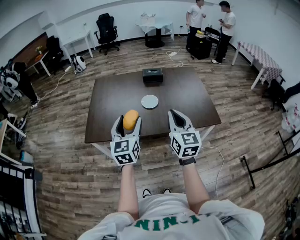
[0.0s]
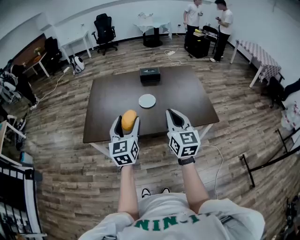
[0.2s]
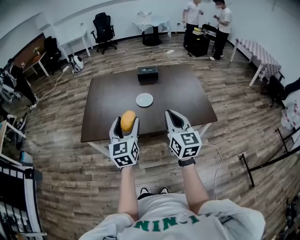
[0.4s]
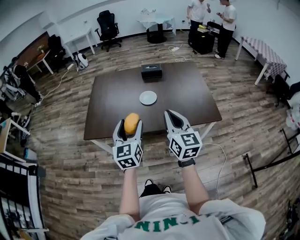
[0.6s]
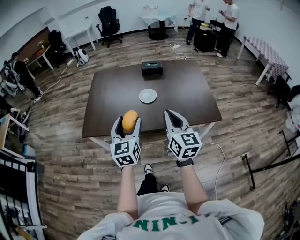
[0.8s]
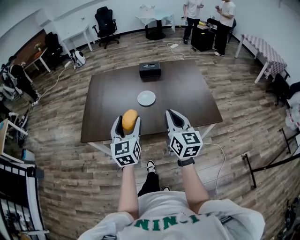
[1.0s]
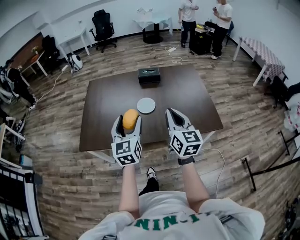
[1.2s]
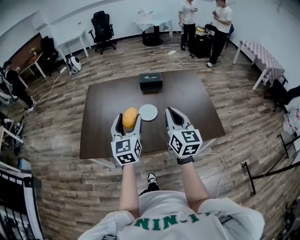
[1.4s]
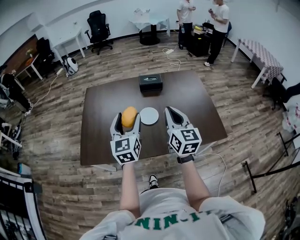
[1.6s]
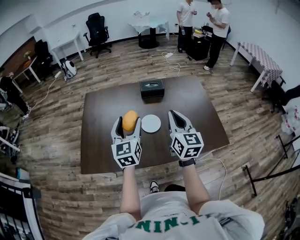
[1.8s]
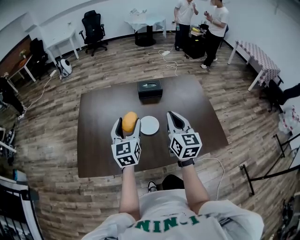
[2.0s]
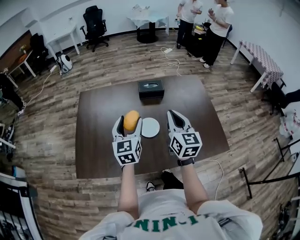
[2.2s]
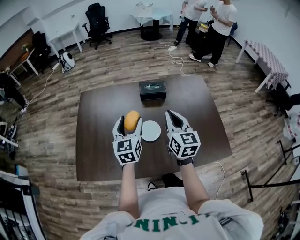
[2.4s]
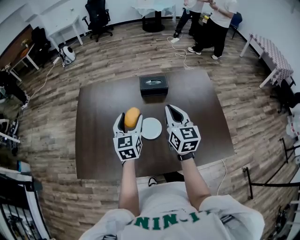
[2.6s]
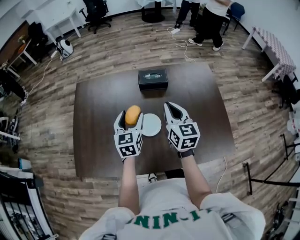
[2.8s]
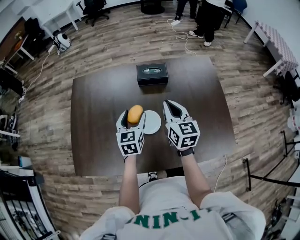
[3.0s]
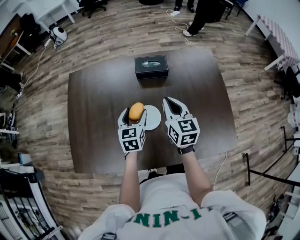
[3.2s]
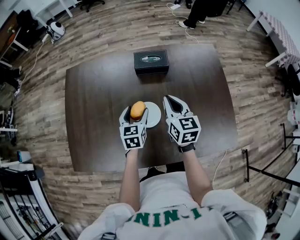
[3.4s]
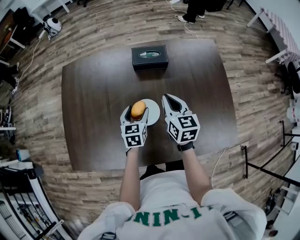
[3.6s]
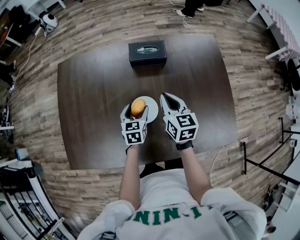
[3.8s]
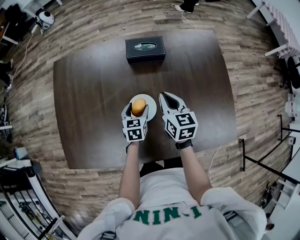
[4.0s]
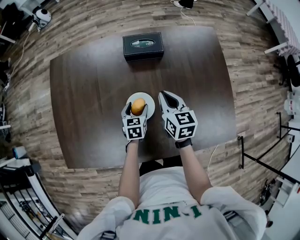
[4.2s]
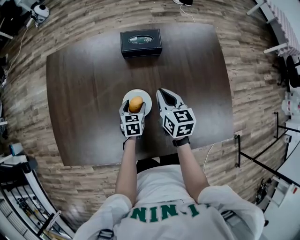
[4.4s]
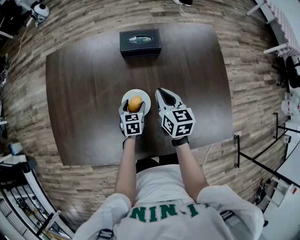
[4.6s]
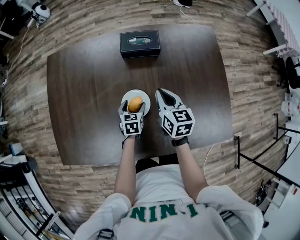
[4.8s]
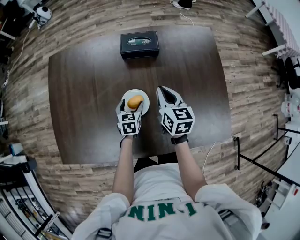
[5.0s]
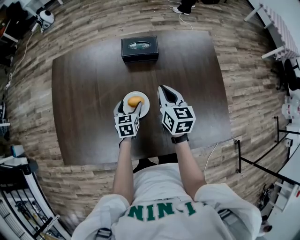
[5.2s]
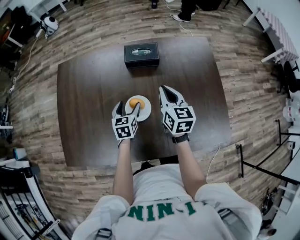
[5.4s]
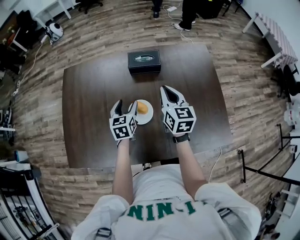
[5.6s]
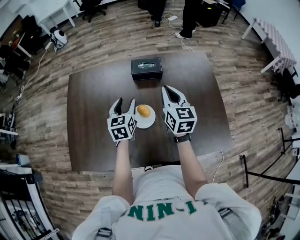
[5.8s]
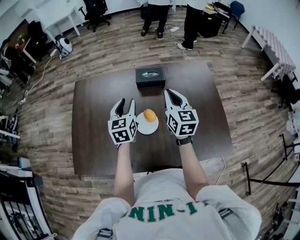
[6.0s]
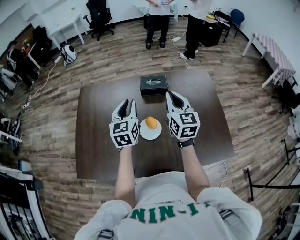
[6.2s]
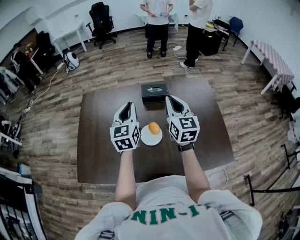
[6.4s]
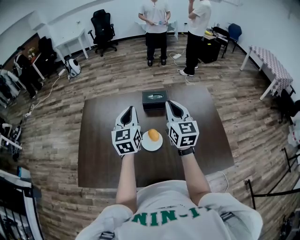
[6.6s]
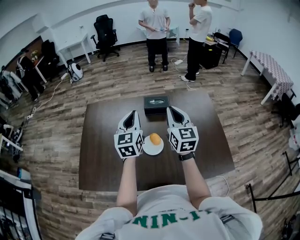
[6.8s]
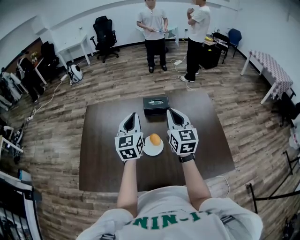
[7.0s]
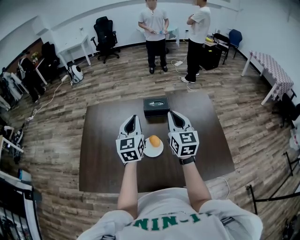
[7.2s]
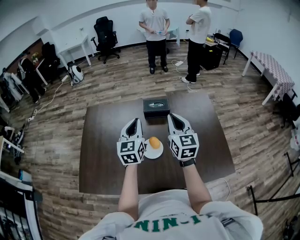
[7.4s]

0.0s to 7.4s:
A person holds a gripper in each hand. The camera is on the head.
0.0s to 1.4s: The grippers both shift forward by some 15 cm.
1.4s to 3.0s: Both grippers move forward and downward, about 35 cm. The left gripper turns by approximately 20 degrees.
3.0s to 4.4s: The left gripper shifts some 25 cm downward, and rotates approximately 20 degrees; the right gripper goes about 15 cm downward.
4.4s to 6.0s: The right gripper is displaced upward by roughly 20 cm, and rotates roughly 20 degrees, while the left gripper shifts about 30 cm upward, swivels about 30 degrees, and closes its fingers.
6.0s to 7.4s: Both grippers travel together upward, approximately 10 cm. The left gripper closes up.

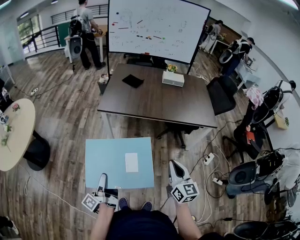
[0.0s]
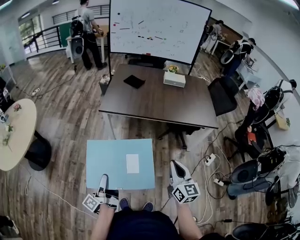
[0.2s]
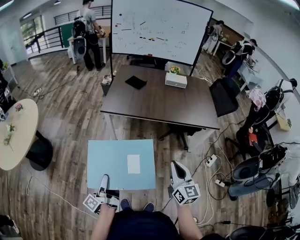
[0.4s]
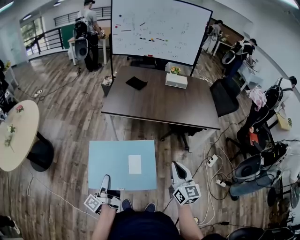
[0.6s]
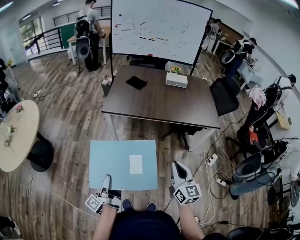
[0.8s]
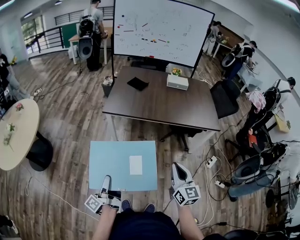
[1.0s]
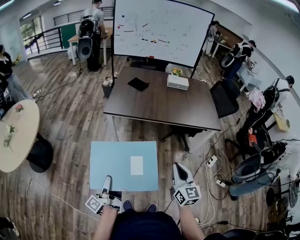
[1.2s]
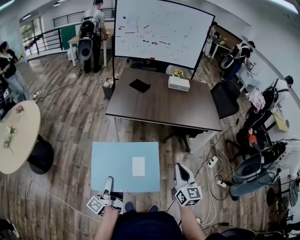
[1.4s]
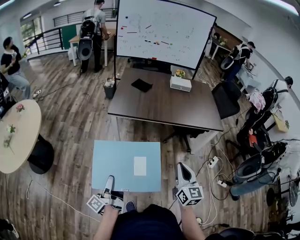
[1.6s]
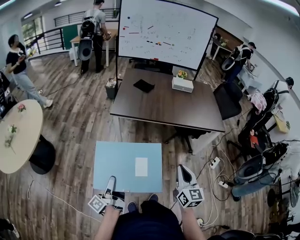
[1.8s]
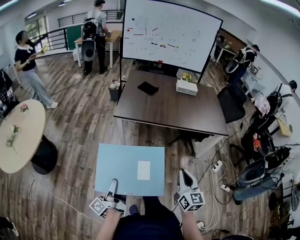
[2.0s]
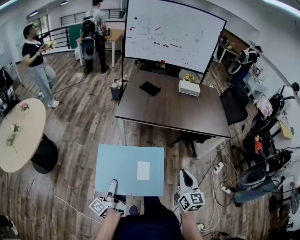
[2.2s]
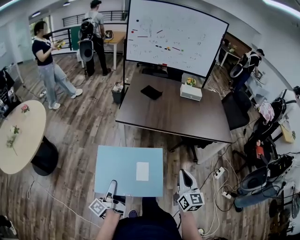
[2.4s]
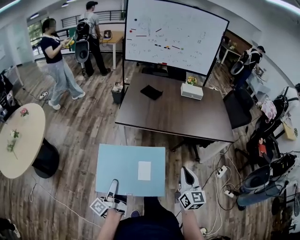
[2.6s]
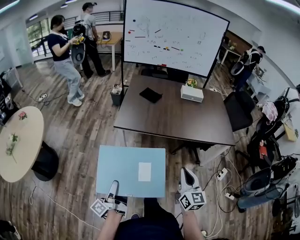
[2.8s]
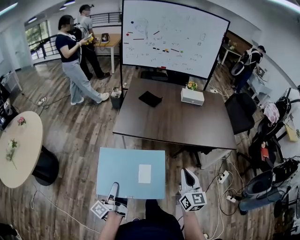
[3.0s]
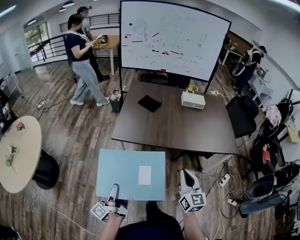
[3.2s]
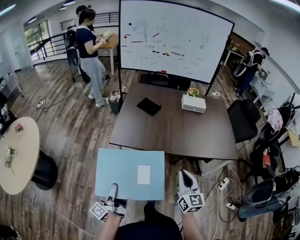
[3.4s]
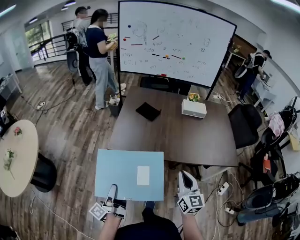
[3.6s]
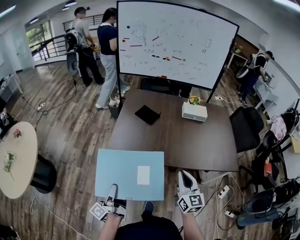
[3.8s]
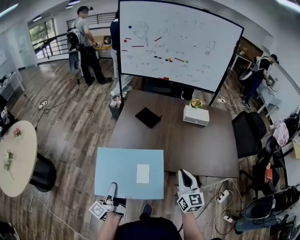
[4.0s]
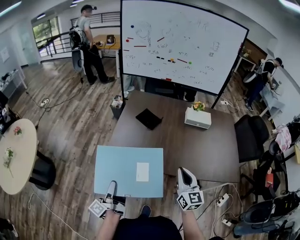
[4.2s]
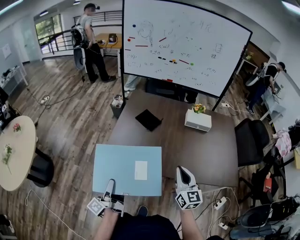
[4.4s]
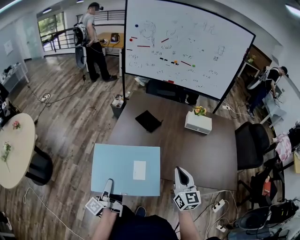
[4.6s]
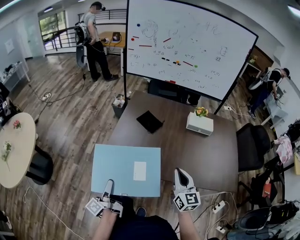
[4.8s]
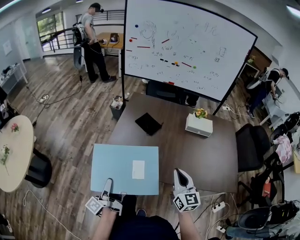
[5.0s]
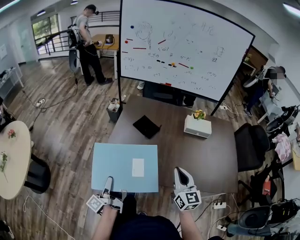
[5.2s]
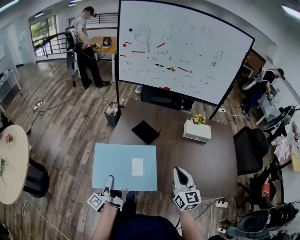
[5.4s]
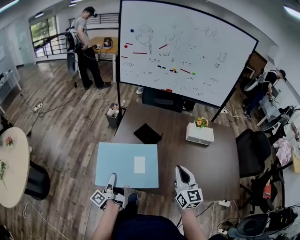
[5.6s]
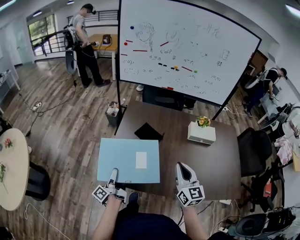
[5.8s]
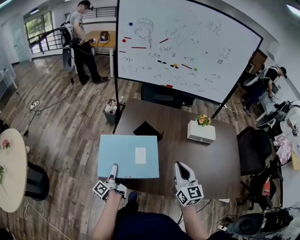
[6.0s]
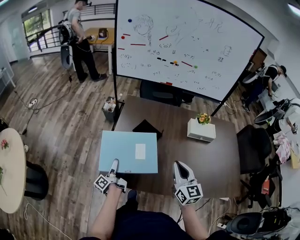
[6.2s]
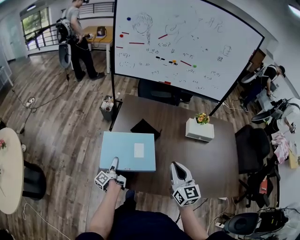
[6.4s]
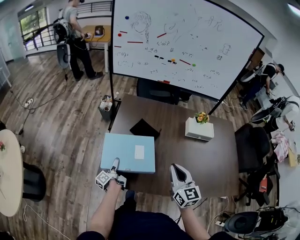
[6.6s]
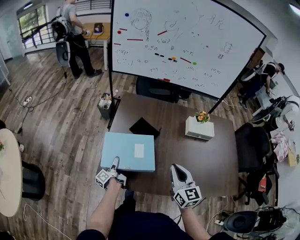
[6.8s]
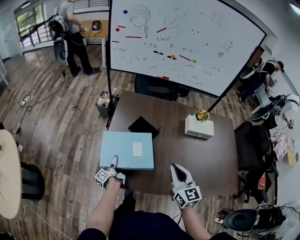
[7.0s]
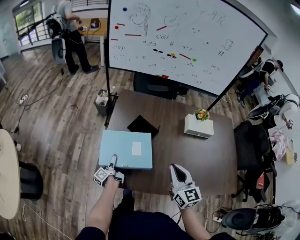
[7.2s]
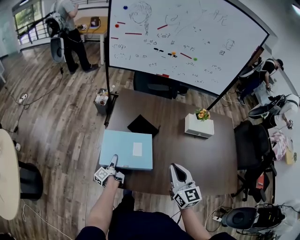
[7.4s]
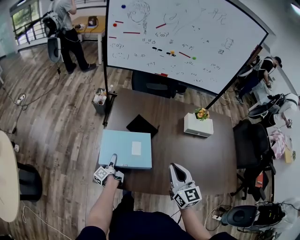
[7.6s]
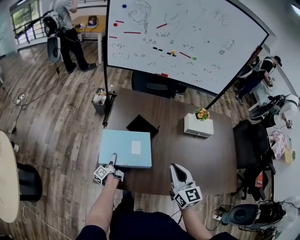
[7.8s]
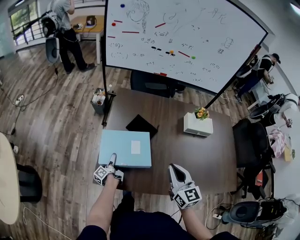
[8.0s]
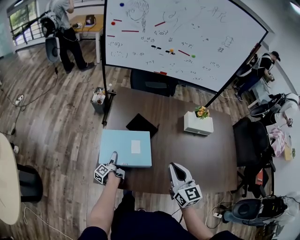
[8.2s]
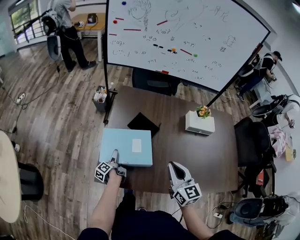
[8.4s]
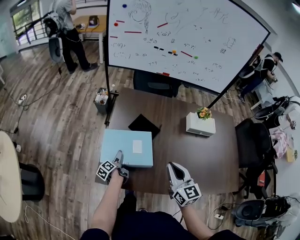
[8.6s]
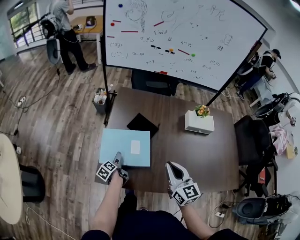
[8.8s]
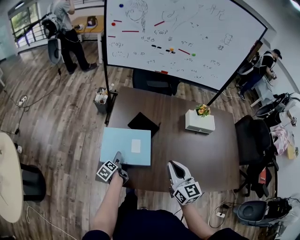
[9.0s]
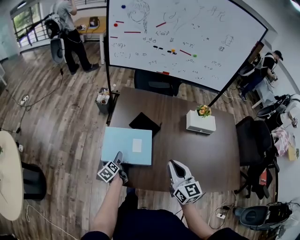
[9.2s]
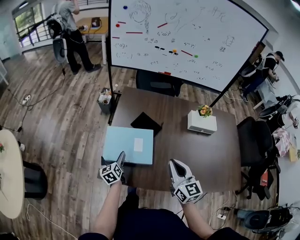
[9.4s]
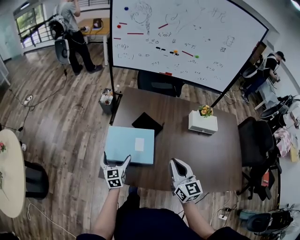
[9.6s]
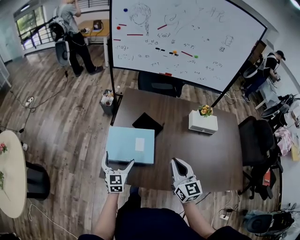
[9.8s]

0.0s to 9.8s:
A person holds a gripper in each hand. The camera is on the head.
1.4s to 2.8s: The right gripper ends up approximately 15 cm from where it was.
2.8s to 4.2s: The right gripper ends up approximately 35 cm from where it was.
4.2s to 5.6s: The right gripper shifts by about 20 cm.
5.6s to 7.0s: The right gripper shifts by some 10 cm.

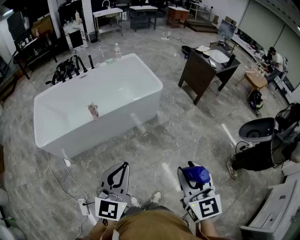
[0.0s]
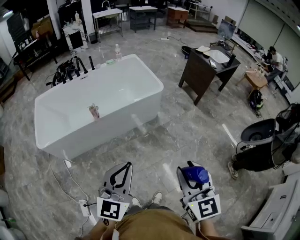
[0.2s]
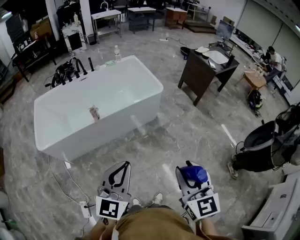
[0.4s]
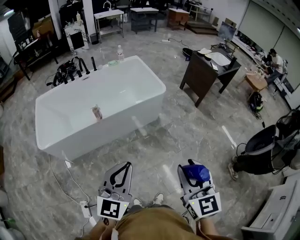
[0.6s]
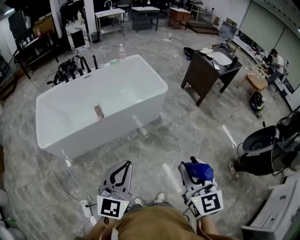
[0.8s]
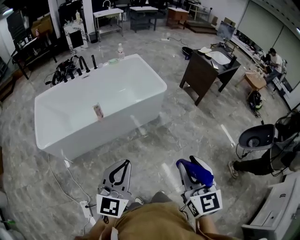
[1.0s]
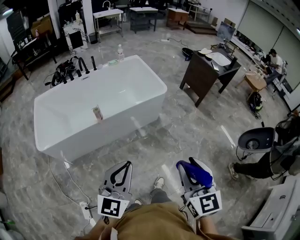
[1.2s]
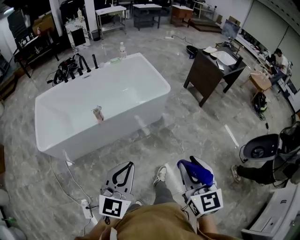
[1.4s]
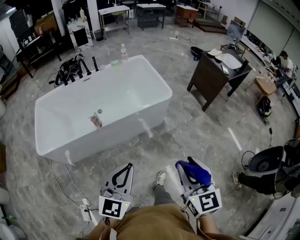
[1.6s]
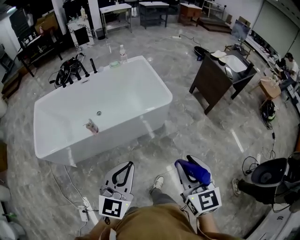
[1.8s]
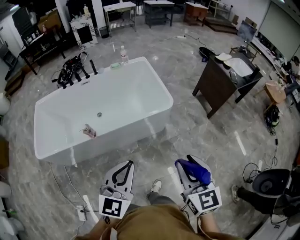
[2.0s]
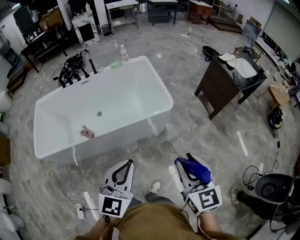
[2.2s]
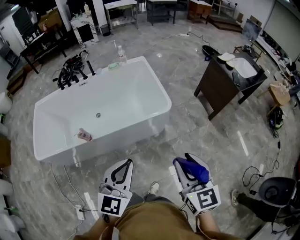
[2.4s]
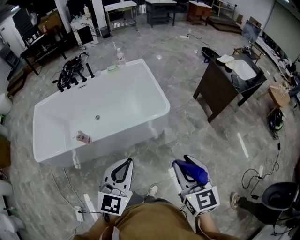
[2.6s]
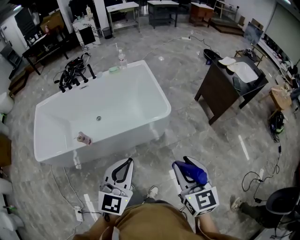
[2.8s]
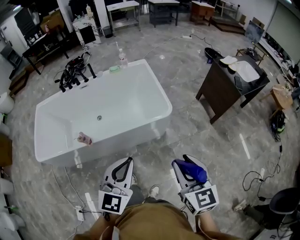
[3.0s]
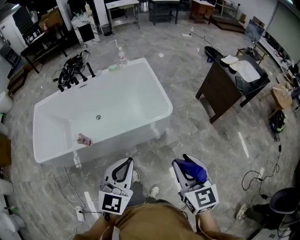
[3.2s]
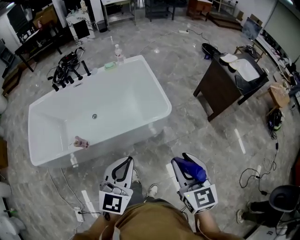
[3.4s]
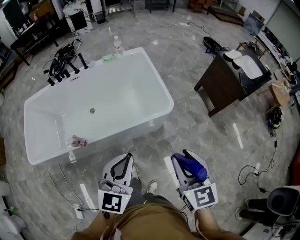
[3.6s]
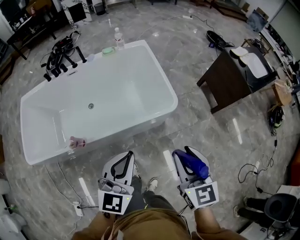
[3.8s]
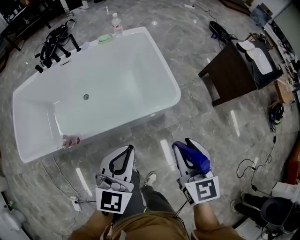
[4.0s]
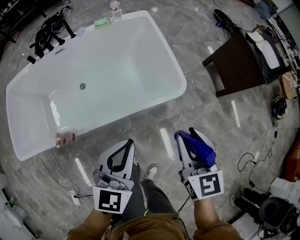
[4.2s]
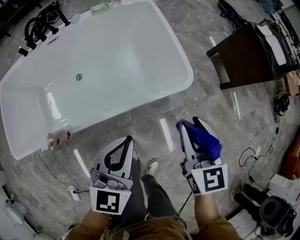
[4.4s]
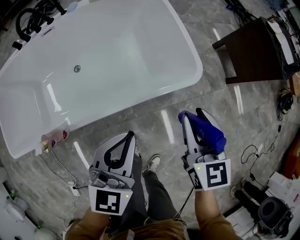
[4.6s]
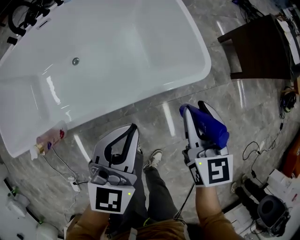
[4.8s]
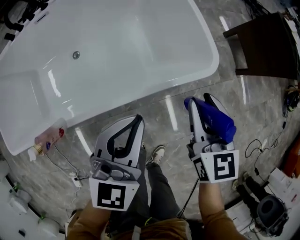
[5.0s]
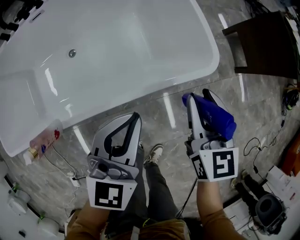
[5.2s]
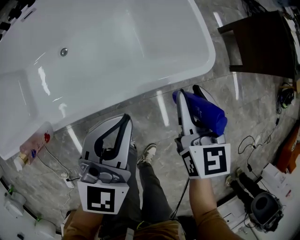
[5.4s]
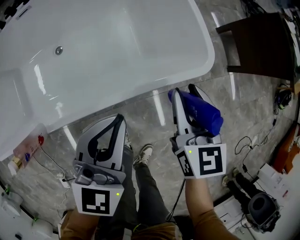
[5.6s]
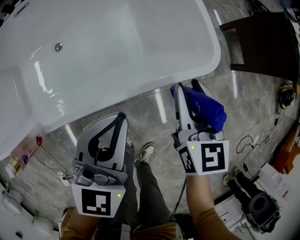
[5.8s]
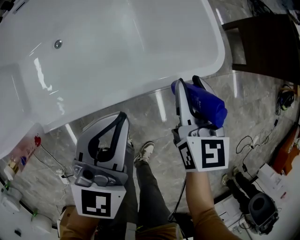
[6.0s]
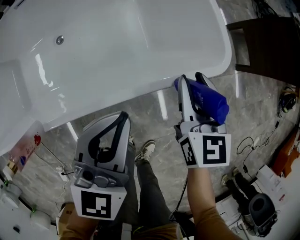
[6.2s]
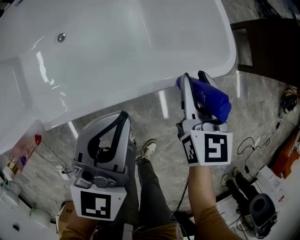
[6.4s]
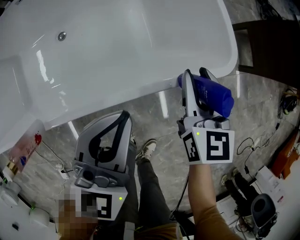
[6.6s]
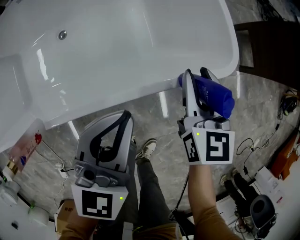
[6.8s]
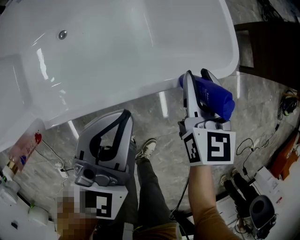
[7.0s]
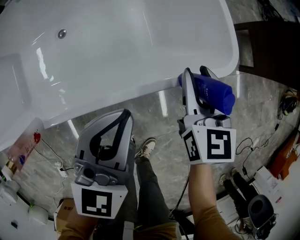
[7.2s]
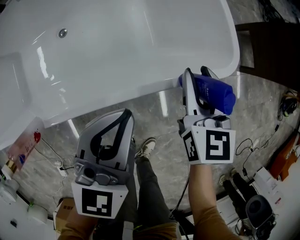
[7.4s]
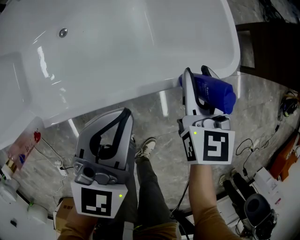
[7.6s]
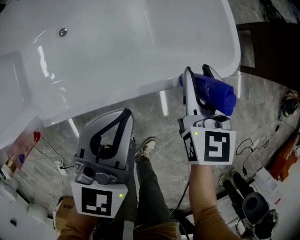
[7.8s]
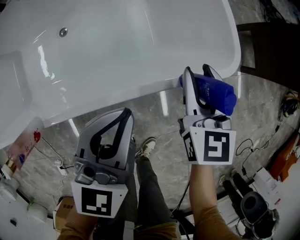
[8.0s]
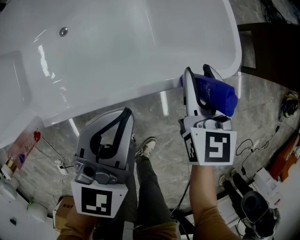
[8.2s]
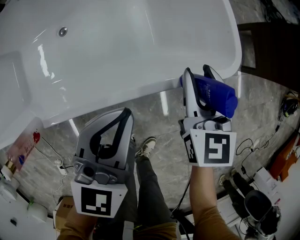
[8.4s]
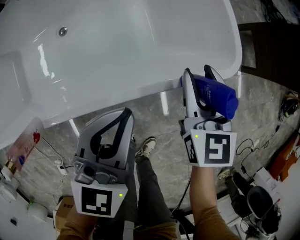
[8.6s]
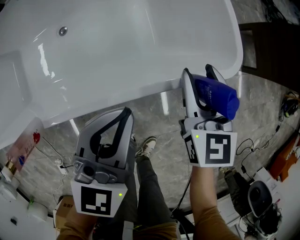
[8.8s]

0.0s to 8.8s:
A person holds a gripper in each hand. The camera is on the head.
0.0s to 1.4s: Both grippers travel together forward, roughly 5 cm.
1.4s to 3.0s: The two grippers go roughly 35 cm forward and to the right.
3.0s to 4.4s: Both grippers travel together forward and downward, roughly 30 cm.
4.4s to 5.8s: The two grippers go roughly 20 cm downward and forward.
5.8s to 7.4s: The right gripper moves roughly 5 cm.
7.4s to 8.8s: Both grippers stay about where they are.
